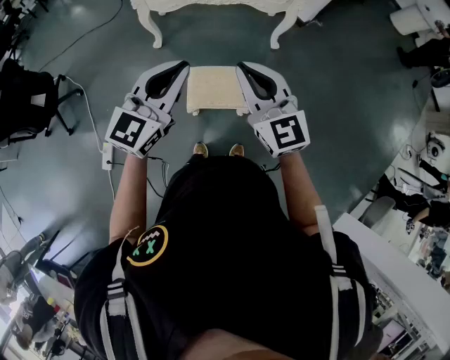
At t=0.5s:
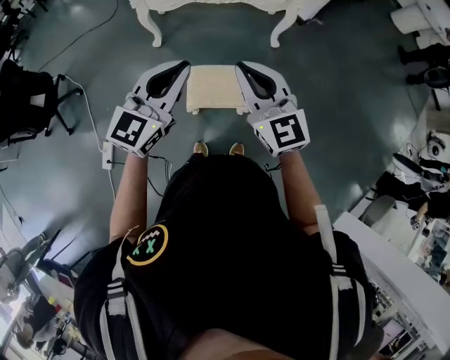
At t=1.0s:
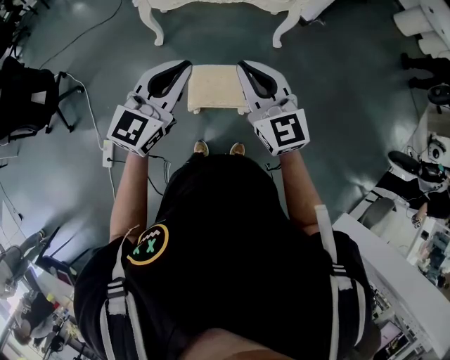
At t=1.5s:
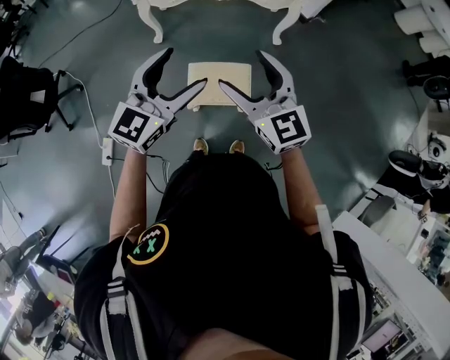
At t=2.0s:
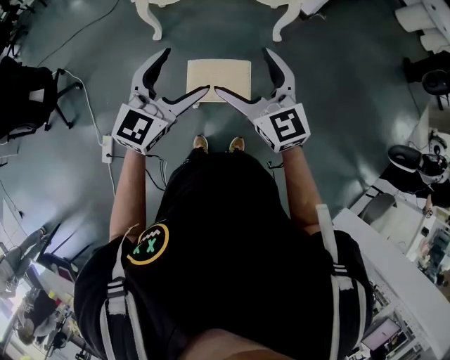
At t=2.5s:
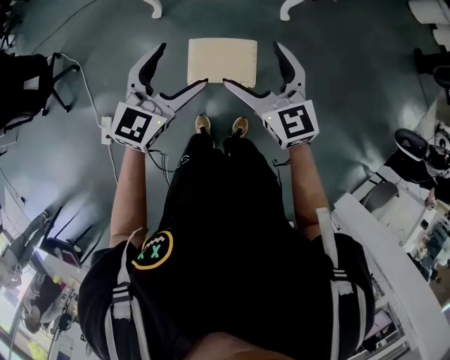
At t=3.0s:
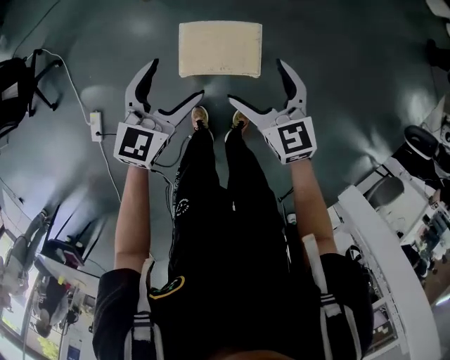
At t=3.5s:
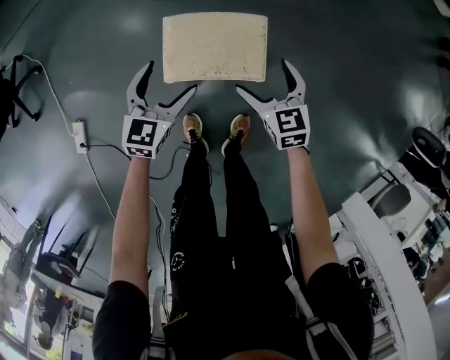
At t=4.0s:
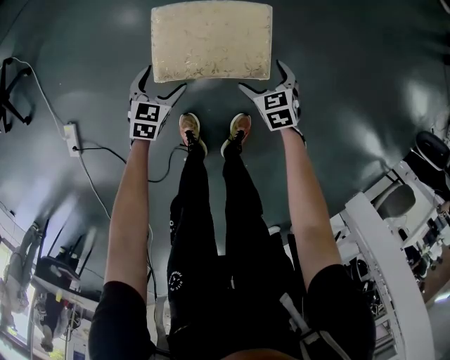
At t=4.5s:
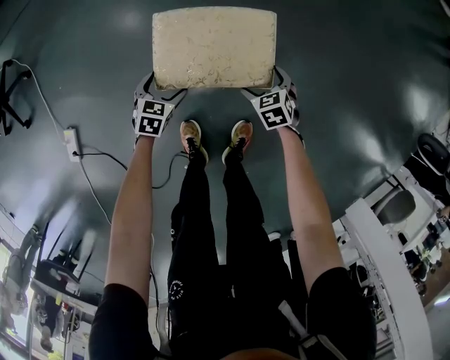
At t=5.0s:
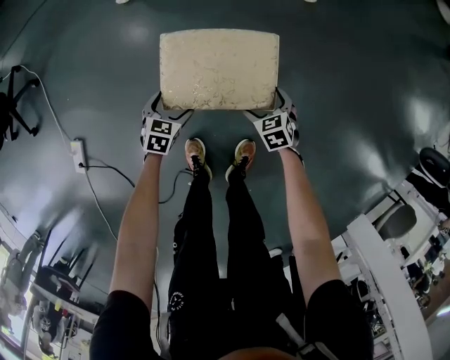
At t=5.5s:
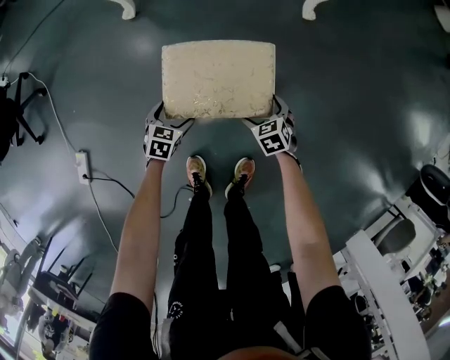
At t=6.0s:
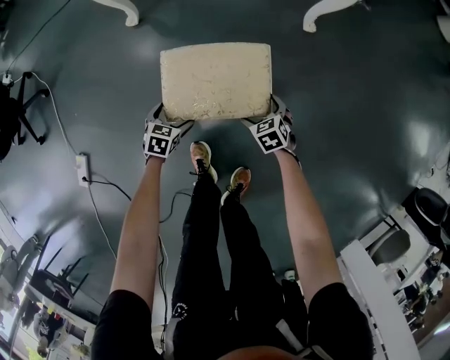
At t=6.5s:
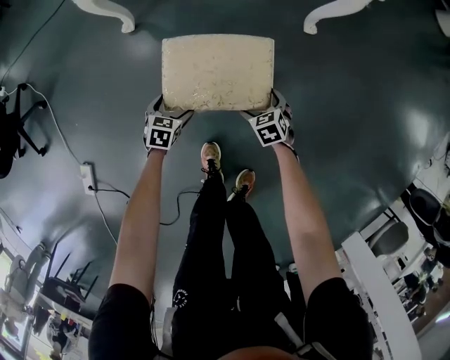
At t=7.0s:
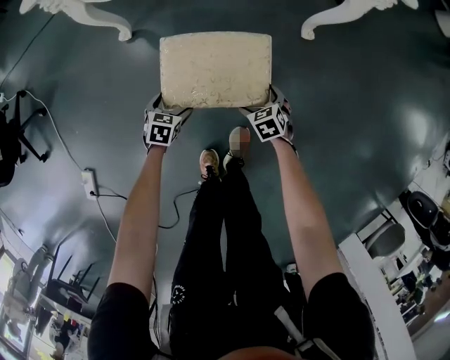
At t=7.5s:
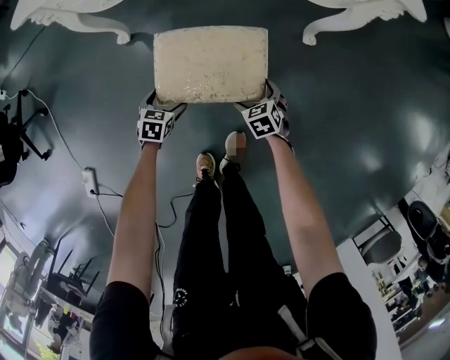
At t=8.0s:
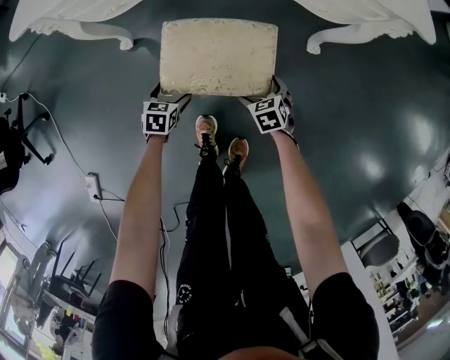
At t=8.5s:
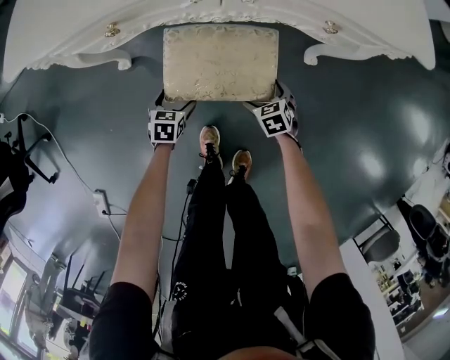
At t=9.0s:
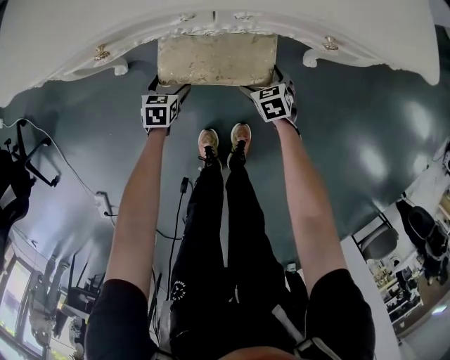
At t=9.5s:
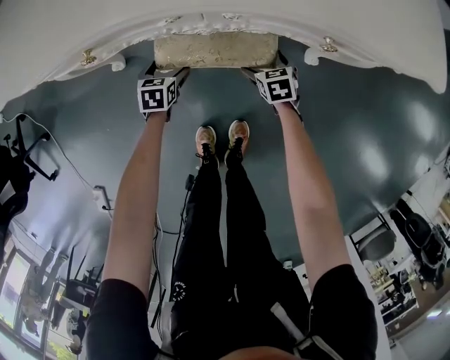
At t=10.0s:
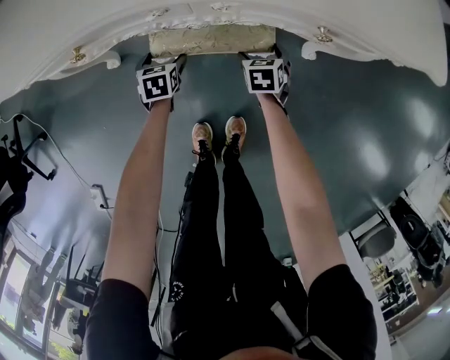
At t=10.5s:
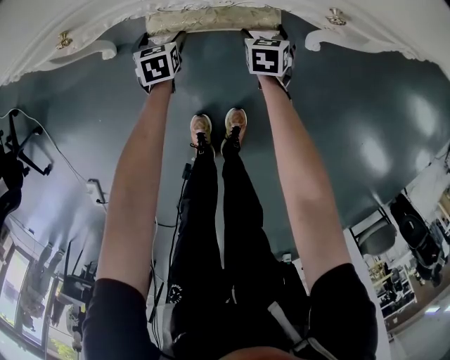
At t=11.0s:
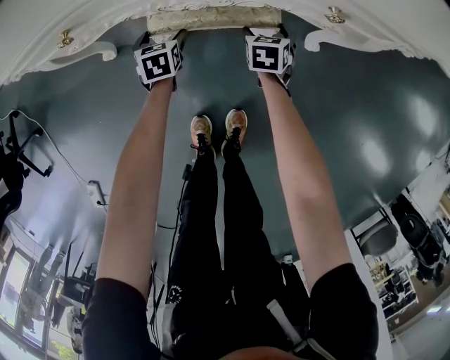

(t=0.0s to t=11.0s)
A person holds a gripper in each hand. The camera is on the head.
t=0.0s - t=2.0s: The right gripper opens up. Meanwhile the left gripper opens.
t=2.0s - t=3.5s: Both grippers move downward, roughly 50 cm. The right gripper turns by about 30 degrees; the left gripper rotates some 30 degrees.
t=3.5s - t=5.5s: Both grippers move downward, approximately 25 cm. The left gripper turns by about 30 degrees; the right gripper swivels roughly 20 degrees.
t=5.5s - t=7.5s: Both grippers move forward, about 25 cm.
t=7.5s - t=9.0s: Both grippers move forward, roughly 25 cm.
t=9.0s - t=11.0s: Both grippers travel together forward, roughly 10 cm. The right gripper turns by about 20 degrees.

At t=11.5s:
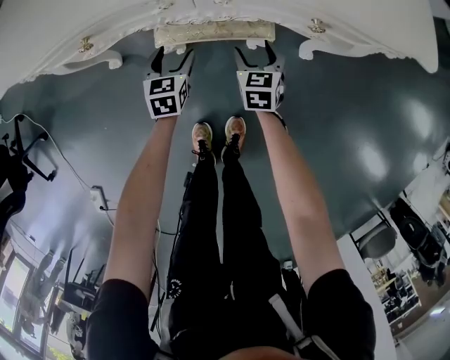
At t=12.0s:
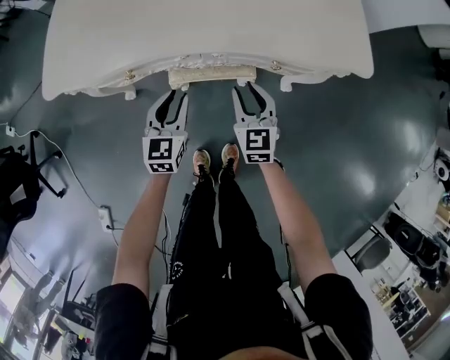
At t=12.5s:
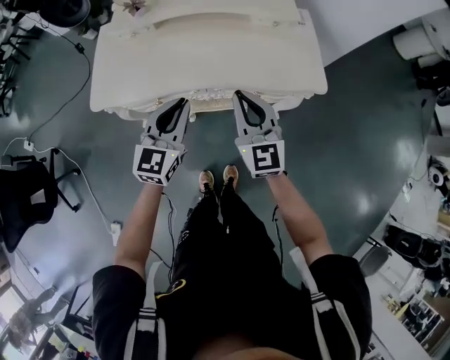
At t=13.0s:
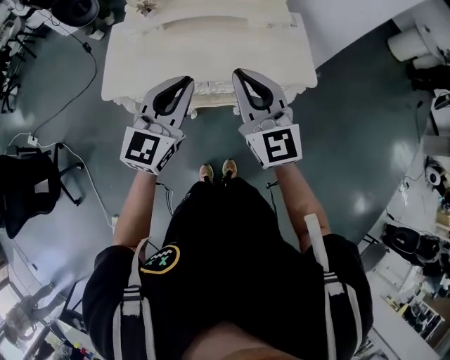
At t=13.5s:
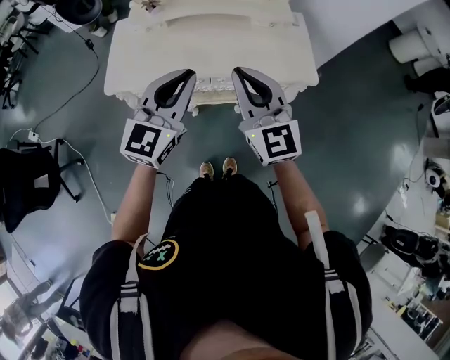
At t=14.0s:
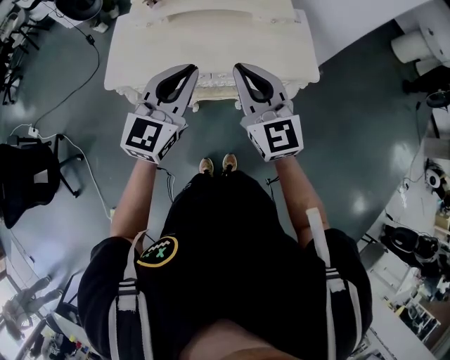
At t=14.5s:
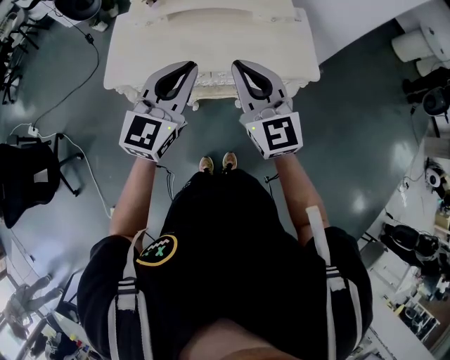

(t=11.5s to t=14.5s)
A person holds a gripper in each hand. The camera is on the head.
t=11.5s - t=13.0s: The grippers both shift upward by approximately 70 cm. The left gripper points its fingers some 40 degrees further upward, and closes its fingers. Meanwhile the right gripper points its fingers about 50 degrees further upward, and closes up.
t=13.0s - t=14.5s: There are only small adjustments of the grippers.

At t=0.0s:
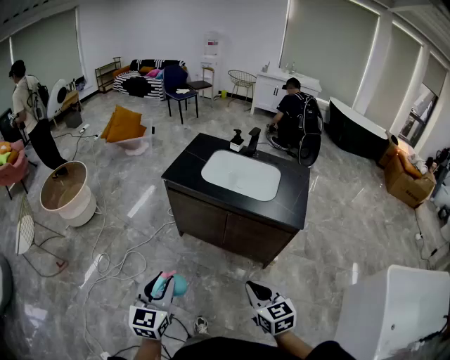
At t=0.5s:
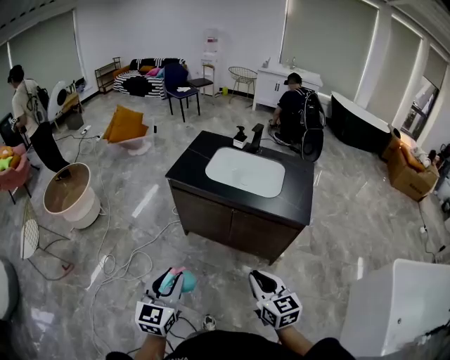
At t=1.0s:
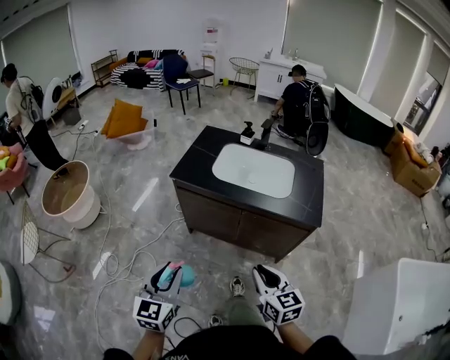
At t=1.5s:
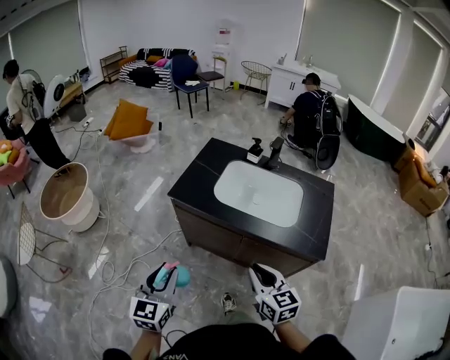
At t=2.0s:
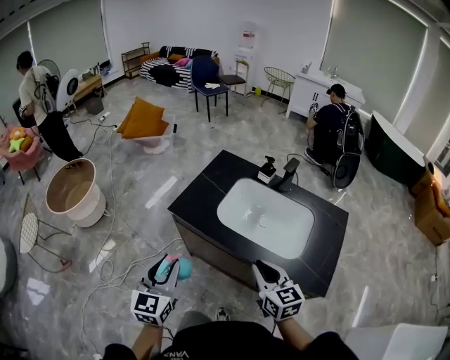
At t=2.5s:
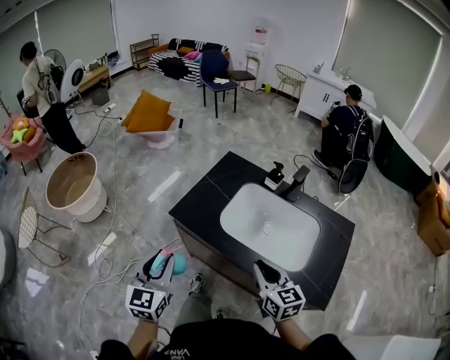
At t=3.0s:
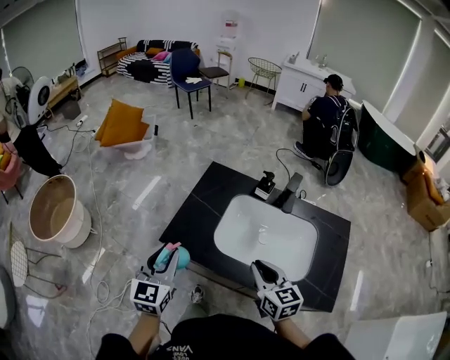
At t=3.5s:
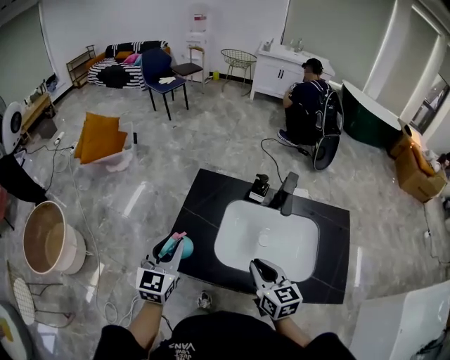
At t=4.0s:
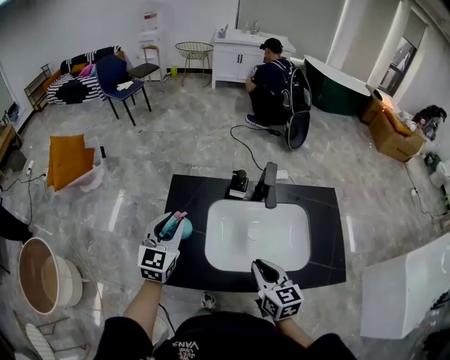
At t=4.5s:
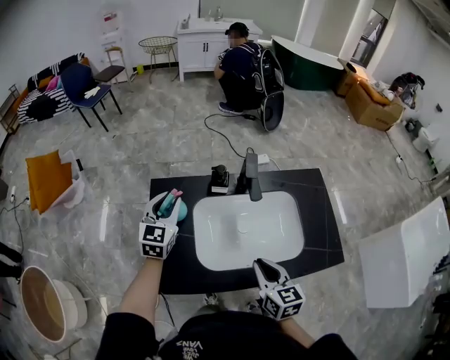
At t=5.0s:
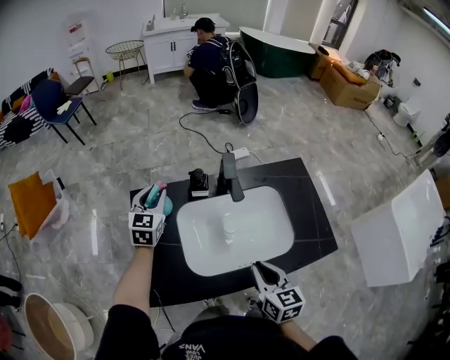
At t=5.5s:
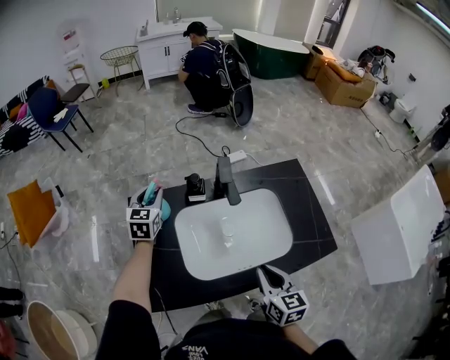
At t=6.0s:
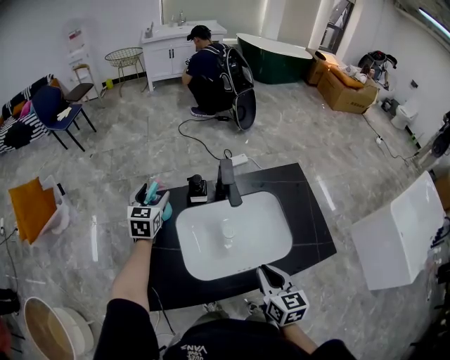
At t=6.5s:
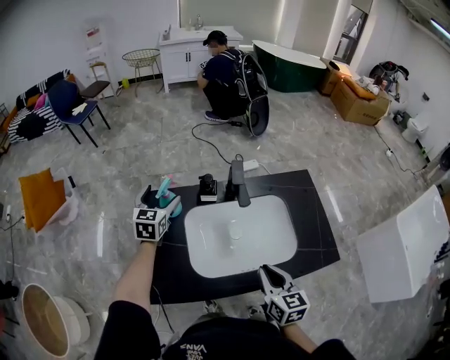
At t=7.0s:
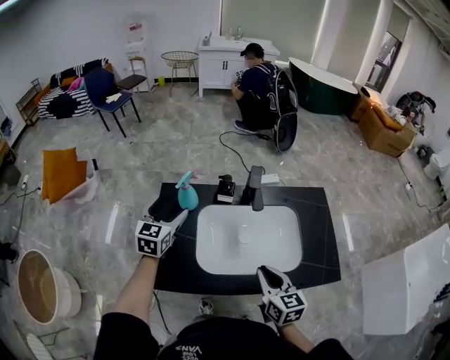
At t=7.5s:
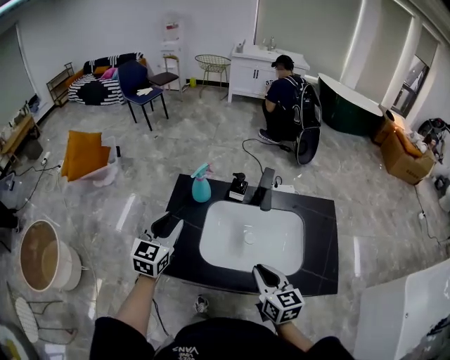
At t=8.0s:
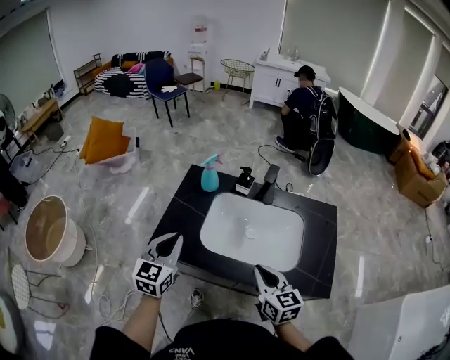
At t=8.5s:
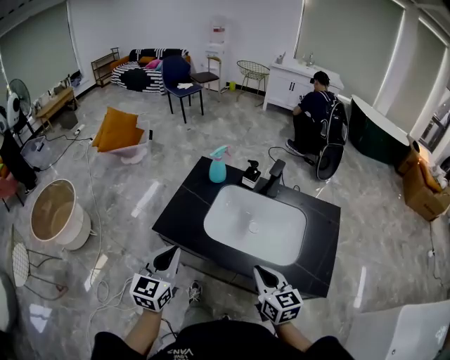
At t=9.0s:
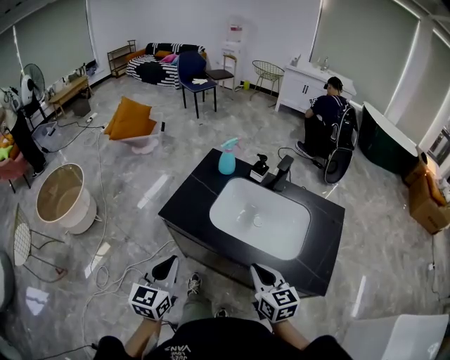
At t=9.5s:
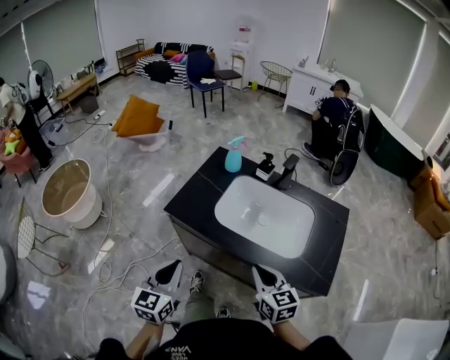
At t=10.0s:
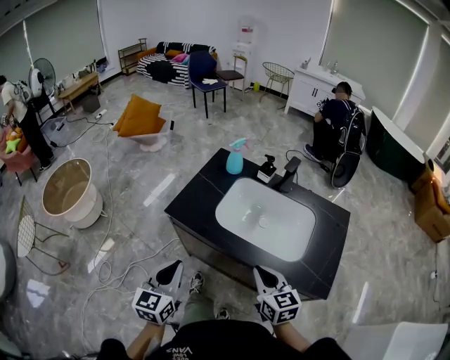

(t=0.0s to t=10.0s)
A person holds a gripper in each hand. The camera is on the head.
t=0.0s - t=2.0s: The grippers both shift forward by some 35 cm.
t=2.0s - t=4.0s: The left gripper moves about 40 cm, and rotates some 30 degrees; the right gripper ends up approximately 20 cm from where it was, and rotates about 30 degrees.
t=4.0s - t=6.0s: The left gripper heads forward, covering roughly 20 cm, and opens its fingers, while the right gripper moves to the right, about 5 cm, and rotates about 20 degrees.
t=6.0s - t=8.0s: The left gripper shifts by about 40 cm, changes its angle by approximately 20 degrees, and closes up, while the right gripper shifts by approximately 5 cm, and swivels about 40 degrees.
t=8.0s - t=10.0s: The left gripper moves backward, approximately 20 cm. The right gripper heads backward, covering about 10 cm.

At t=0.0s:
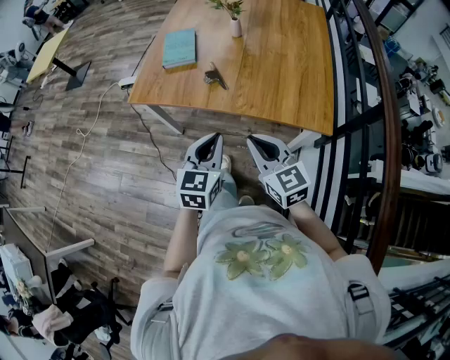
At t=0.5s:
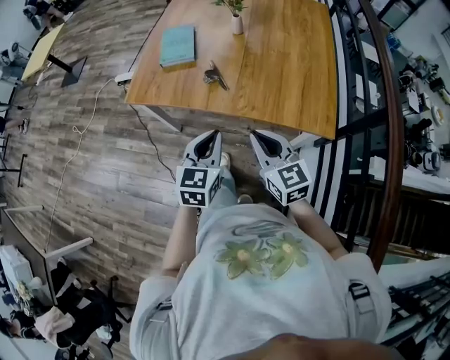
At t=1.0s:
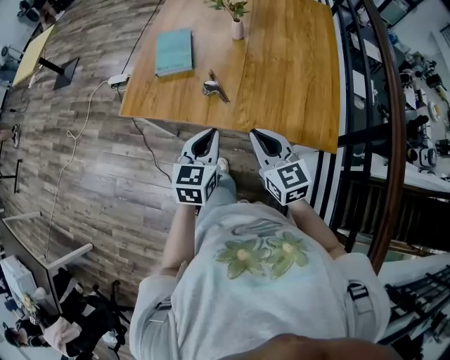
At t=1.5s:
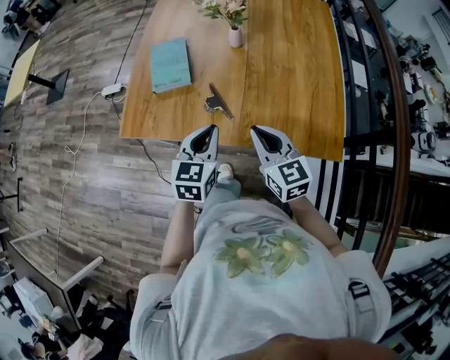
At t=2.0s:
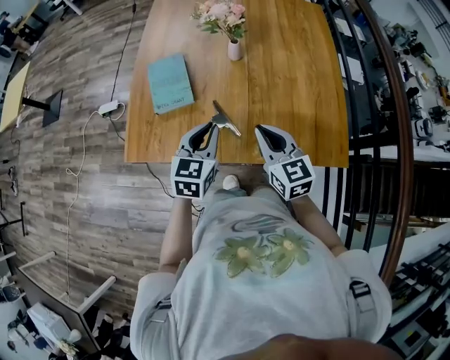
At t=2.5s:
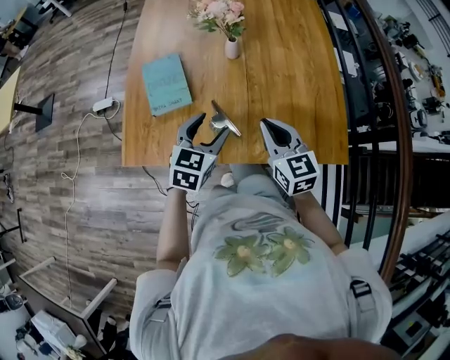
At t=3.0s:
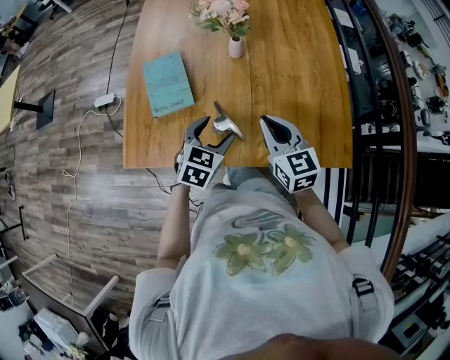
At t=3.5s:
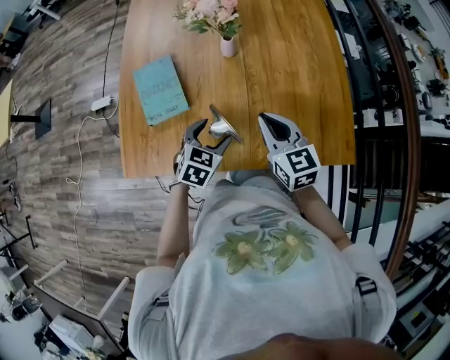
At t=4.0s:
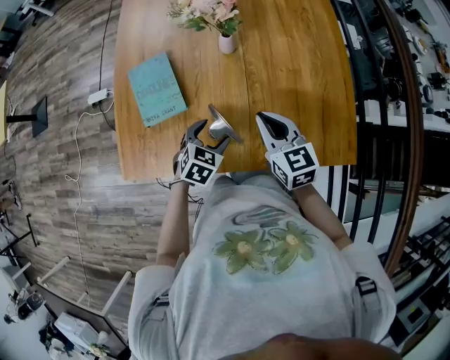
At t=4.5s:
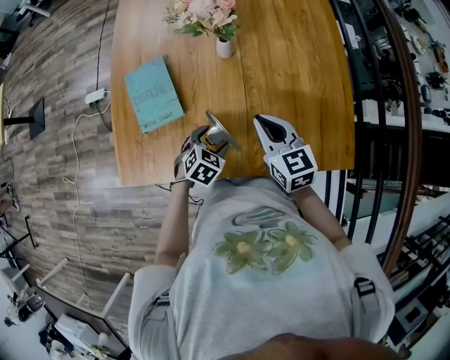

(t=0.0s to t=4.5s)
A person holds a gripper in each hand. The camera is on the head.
t=0.0s - t=2.0s: The two grippers go roughly 25 cm forward.
t=2.0s - t=4.5s: The left gripper moves downward, some 20 cm, points its fingers about 30 degrees further downward, and opens. Meanwhile the right gripper travels forward by approximately 10 cm.
